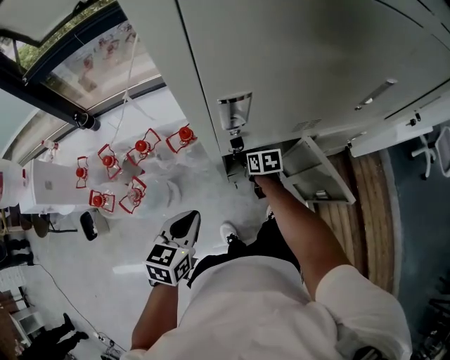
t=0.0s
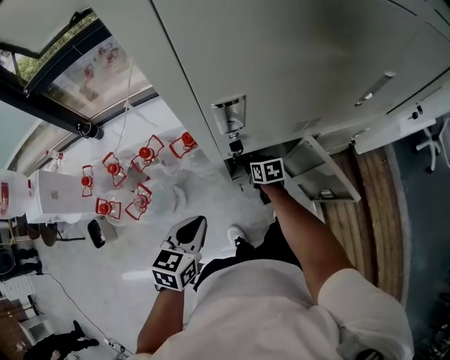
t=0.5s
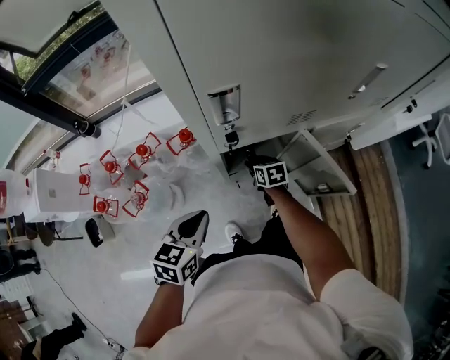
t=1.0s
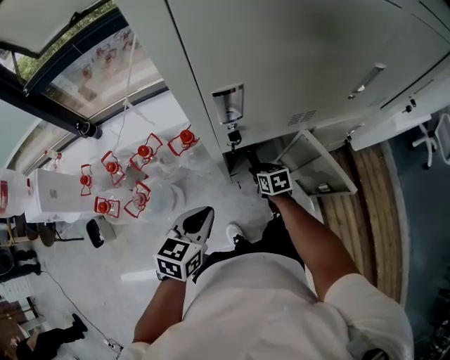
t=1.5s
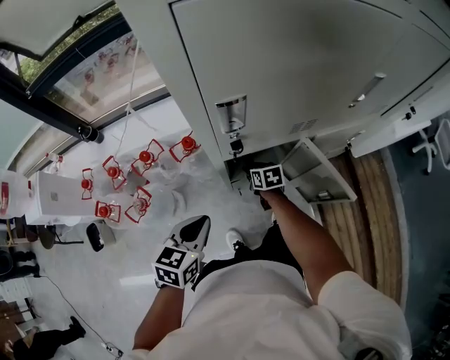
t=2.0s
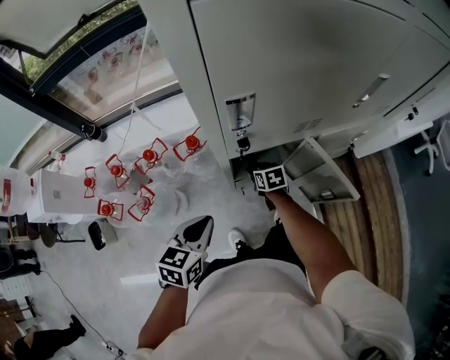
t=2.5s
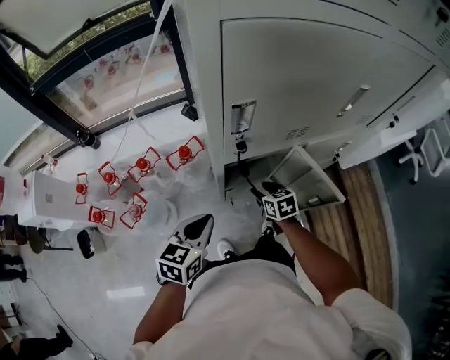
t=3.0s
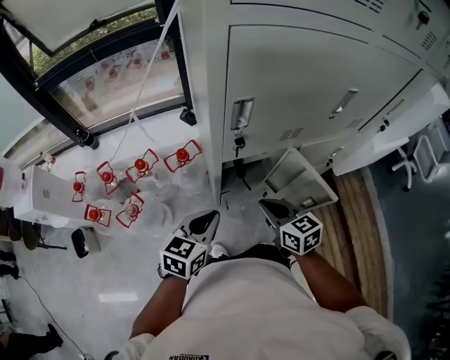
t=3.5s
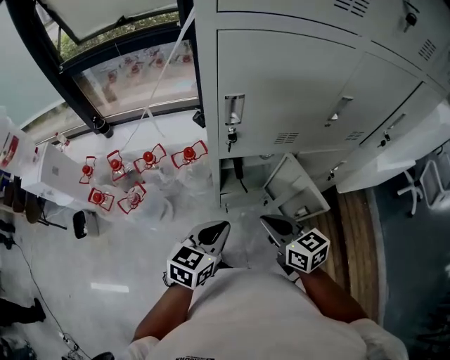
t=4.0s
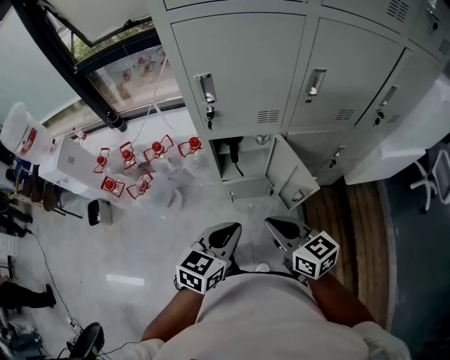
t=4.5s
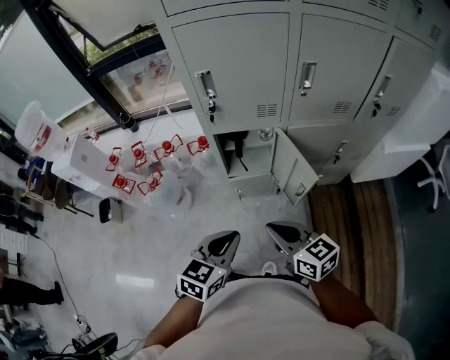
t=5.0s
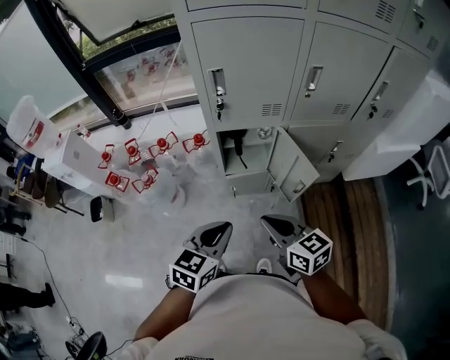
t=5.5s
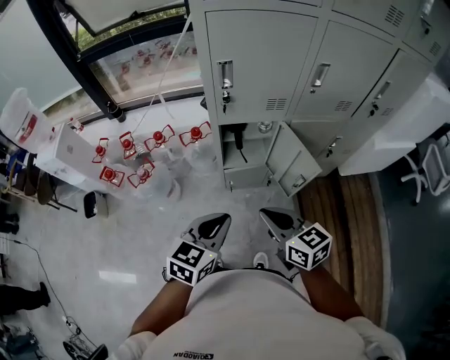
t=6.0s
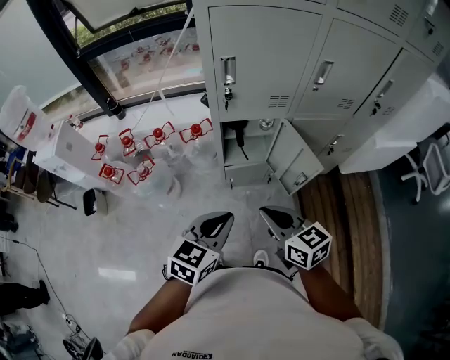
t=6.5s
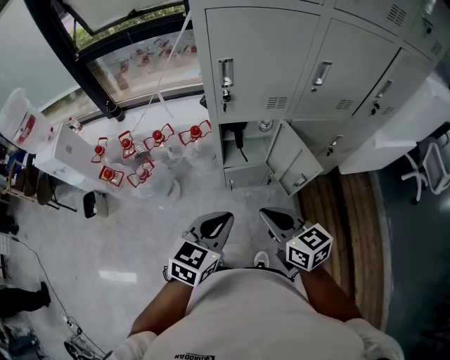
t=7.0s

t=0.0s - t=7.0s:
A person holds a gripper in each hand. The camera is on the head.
t=2.0s - t=3.5s: The right gripper heads upward and backward, covering approximately 30 cm, rotates some 20 degrees, and closes its fingers. The left gripper ends up some 5 cm from where it was.
t=3.5s - t=5.0s: Both grippers travel together backward and to the right, approximately 25 cm.
t=5.0s - t=7.0s: The two grippers go some 5 cm to the left.

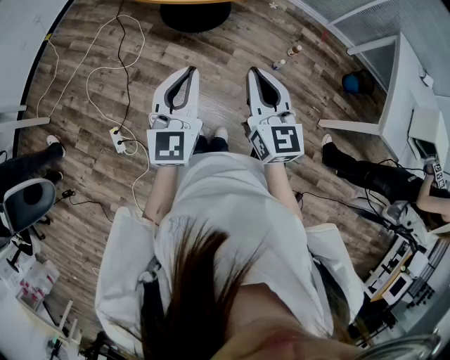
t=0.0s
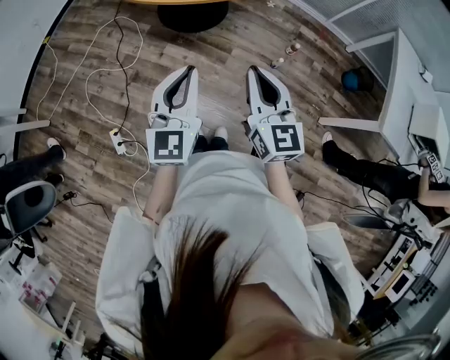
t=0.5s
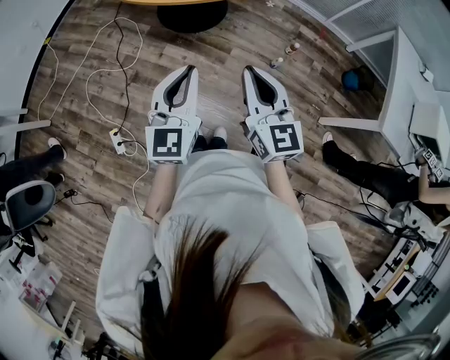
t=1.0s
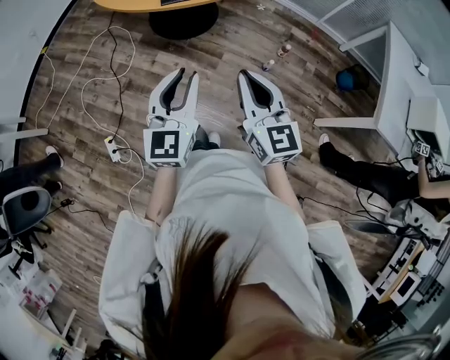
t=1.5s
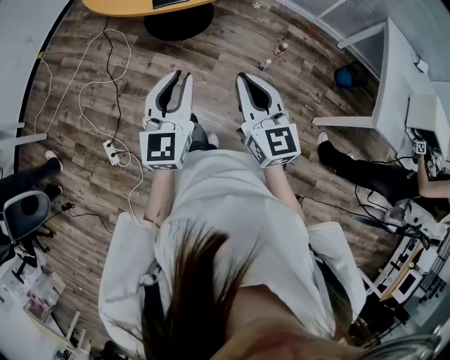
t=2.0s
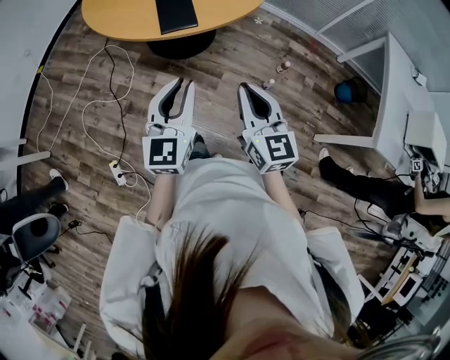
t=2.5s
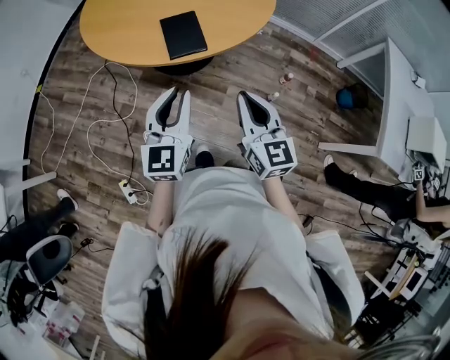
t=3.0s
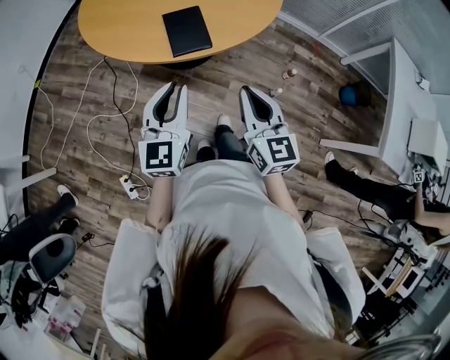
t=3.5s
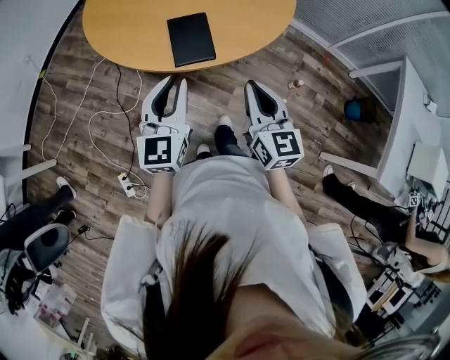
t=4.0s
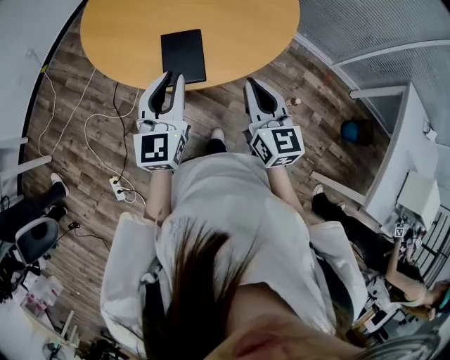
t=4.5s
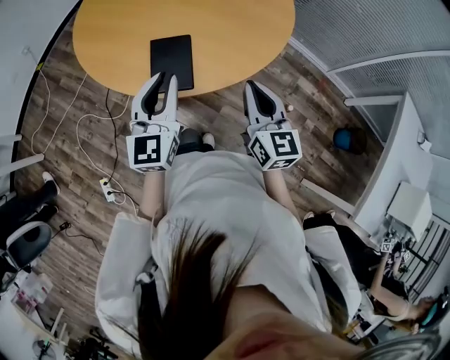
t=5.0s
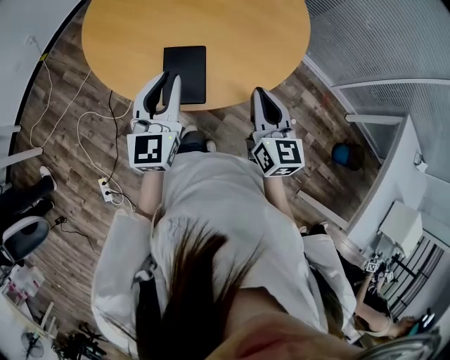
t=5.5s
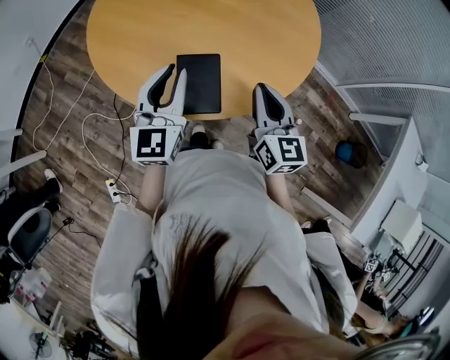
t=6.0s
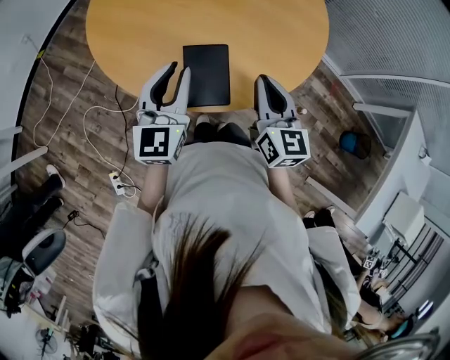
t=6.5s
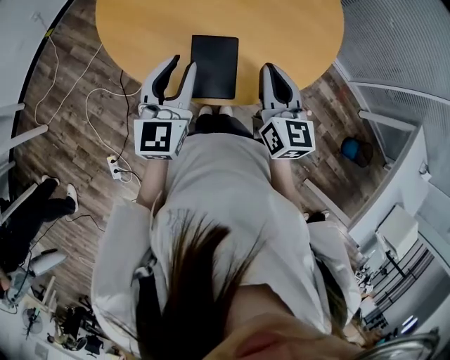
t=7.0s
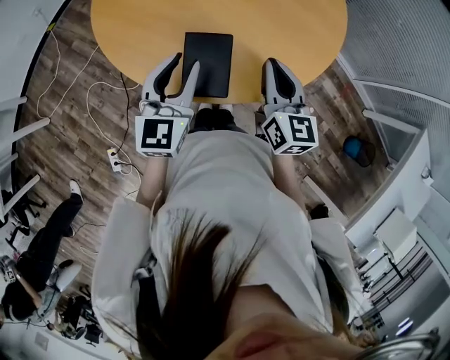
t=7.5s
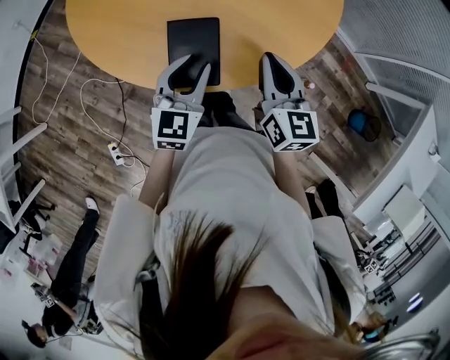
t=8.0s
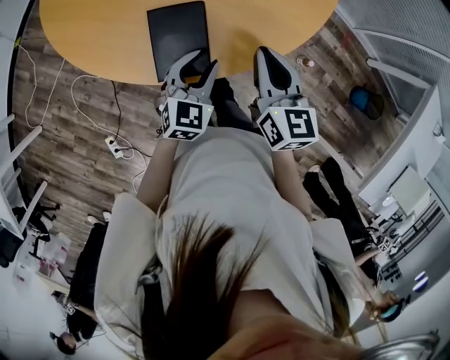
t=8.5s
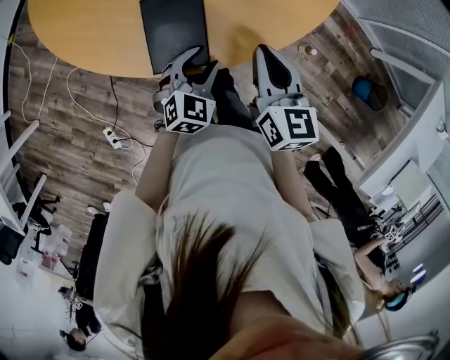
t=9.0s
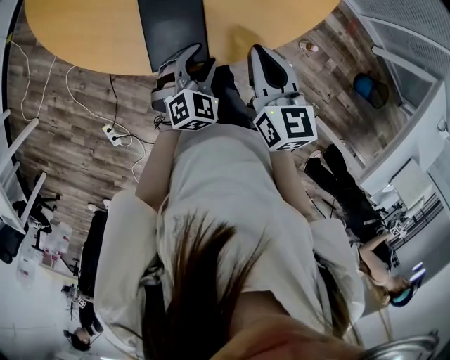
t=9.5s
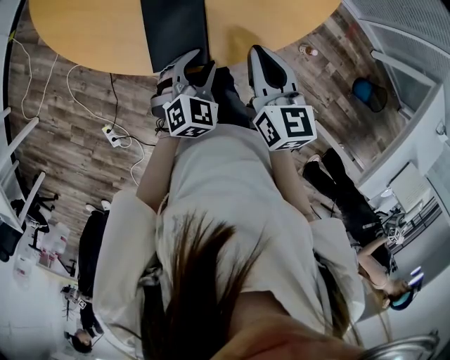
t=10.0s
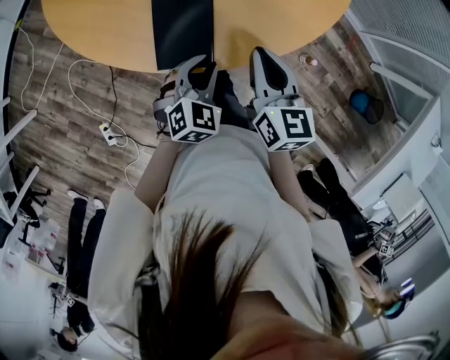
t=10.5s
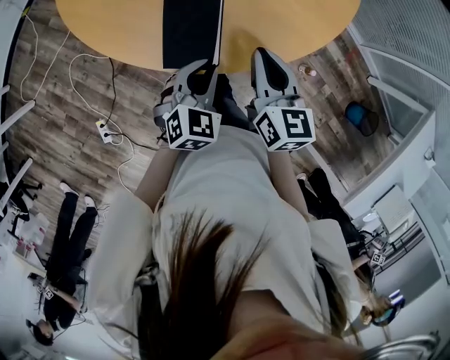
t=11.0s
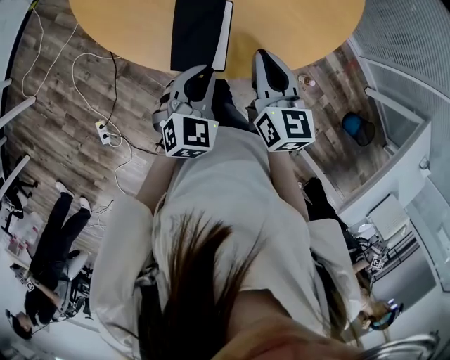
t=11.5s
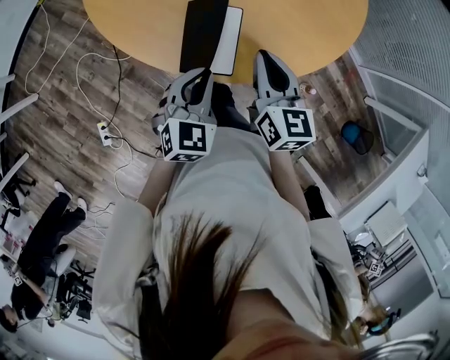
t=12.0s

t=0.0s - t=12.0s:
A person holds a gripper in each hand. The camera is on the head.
t=0.0s - t=2.0s: The grippers both shift to the right by roughly 10 cm.
t=2.0s - t=4.0s: The grippers both shift forward by some 30 cm.
t=4.0s - t=6.0s: Both grippers move forward, roughly 20 cm.
t=6.0s - t=8.0s: The left gripper goes roughly 15 cm downward and to the right, and rotates about 20 degrees. Meanwhile the right gripper travels downward by roughly 5 cm.
t=8.0s - t=10.0s: The right gripper shifts some 5 cm downward. Meanwhile the left gripper moves downward and to the right, some 15 cm, and turns by some 30 degrees.
t=10.0s - t=12.0s: The right gripper travels to the left by about 5 cm. Meanwhile the left gripper goes some 10 cm upward and to the left, turns by some 20 degrees, and closes.

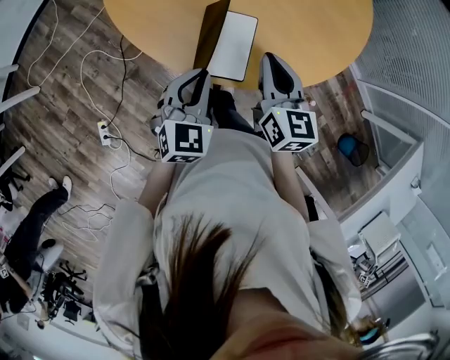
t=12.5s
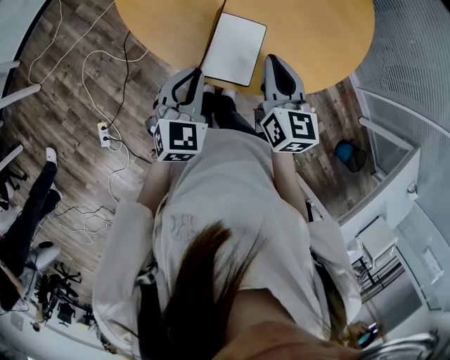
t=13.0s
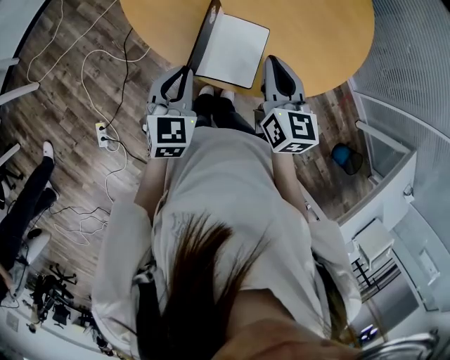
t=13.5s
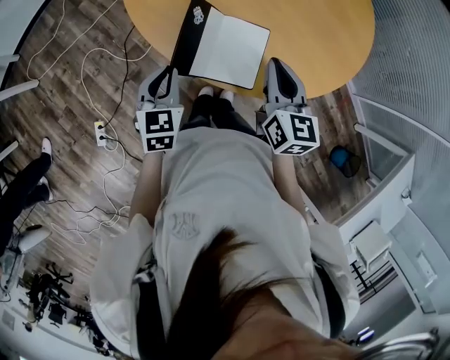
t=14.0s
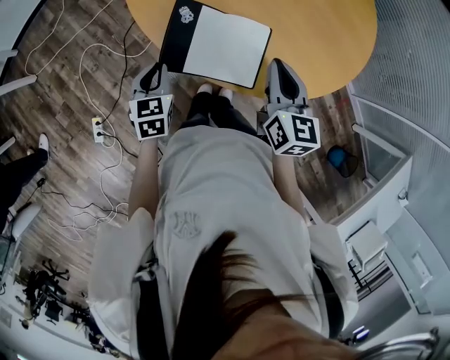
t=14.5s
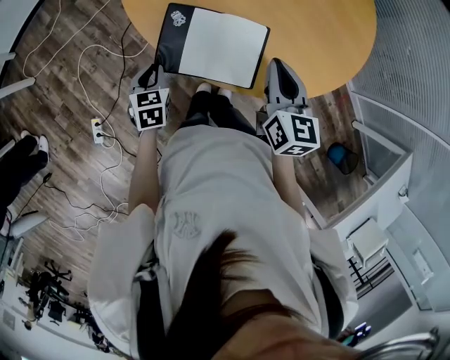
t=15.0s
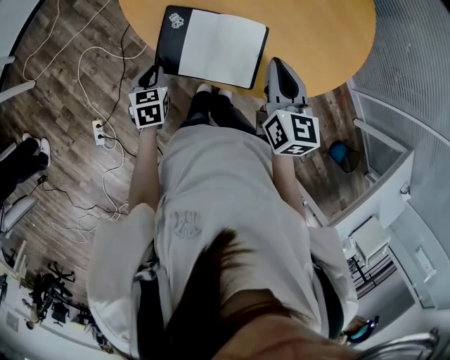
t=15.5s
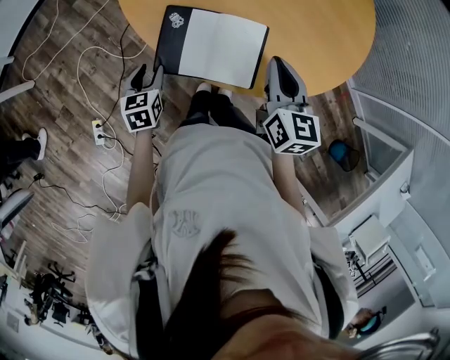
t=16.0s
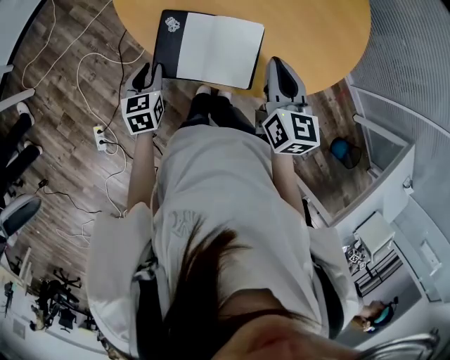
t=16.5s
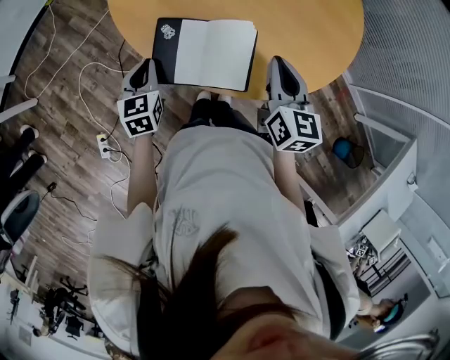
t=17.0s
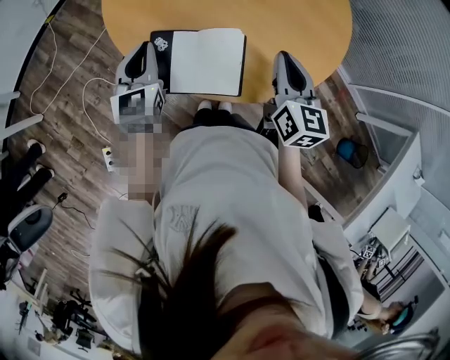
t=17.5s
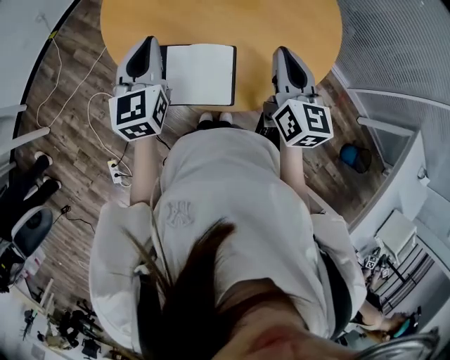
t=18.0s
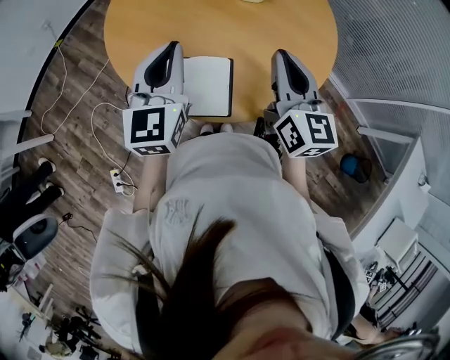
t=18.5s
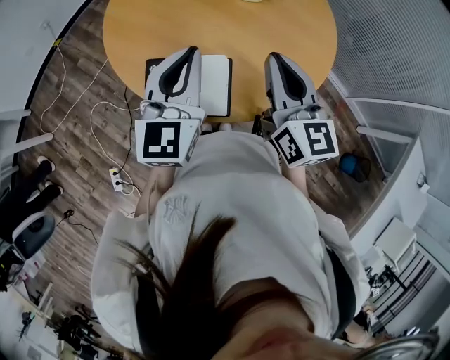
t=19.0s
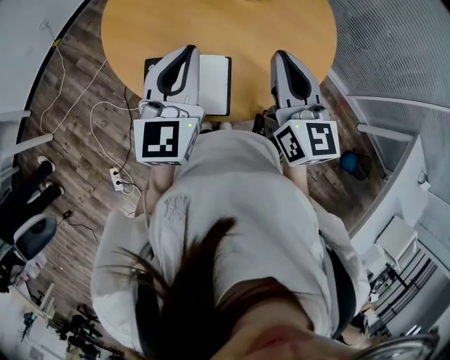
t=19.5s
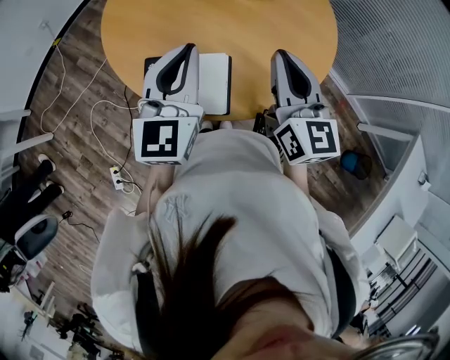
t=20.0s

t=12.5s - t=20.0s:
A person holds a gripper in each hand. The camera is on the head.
t=12.5s - t=14.5s: The left gripper moves to the left and downward, some 20 cm, and rotates about 30 degrees.
t=16.5s - t=18.0s: The right gripper shifts about 15 cm upward and to the right, while the left gripper goes roughly 25 cm upward, swivels roughly 30 degrees, and closes.
t=18.0s - t=20.0s: The right gripper is displaced upward by about 5 cm; the left gripper shifts roughly 15 cm to the right and upward.
